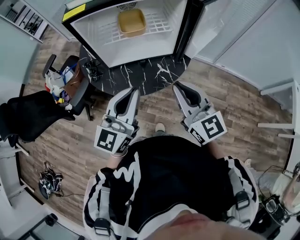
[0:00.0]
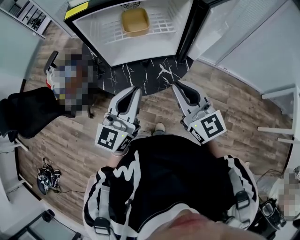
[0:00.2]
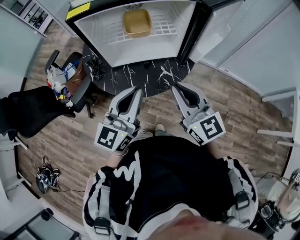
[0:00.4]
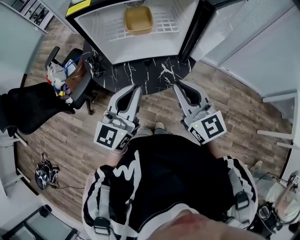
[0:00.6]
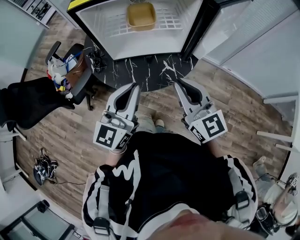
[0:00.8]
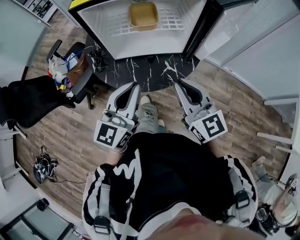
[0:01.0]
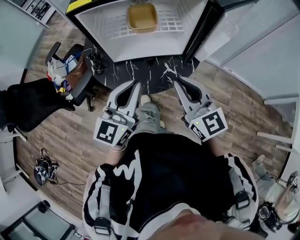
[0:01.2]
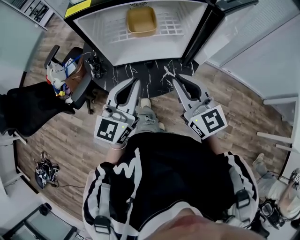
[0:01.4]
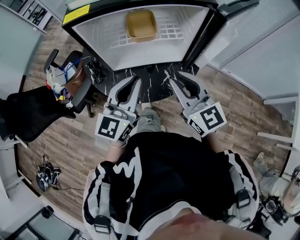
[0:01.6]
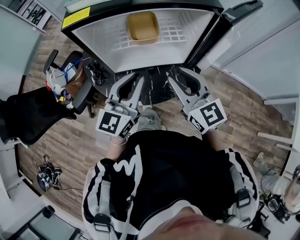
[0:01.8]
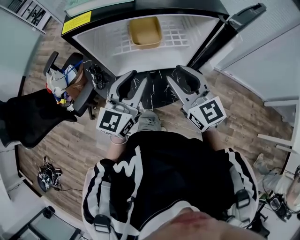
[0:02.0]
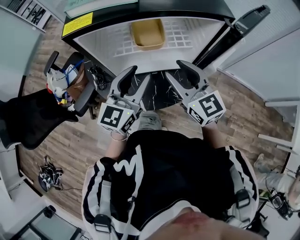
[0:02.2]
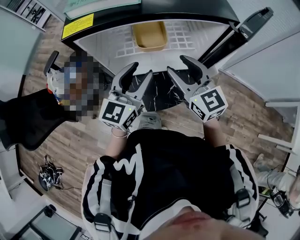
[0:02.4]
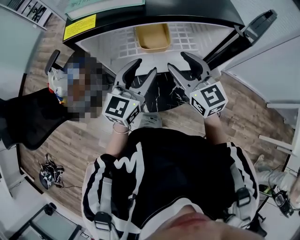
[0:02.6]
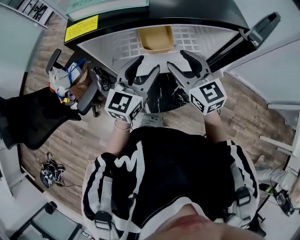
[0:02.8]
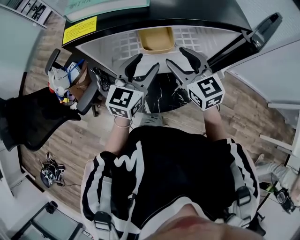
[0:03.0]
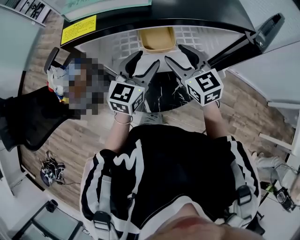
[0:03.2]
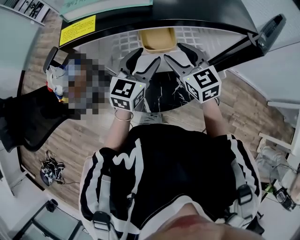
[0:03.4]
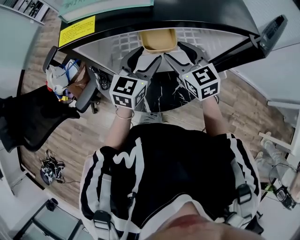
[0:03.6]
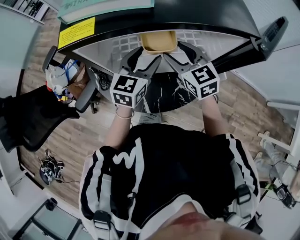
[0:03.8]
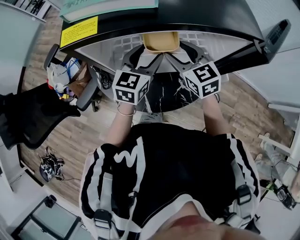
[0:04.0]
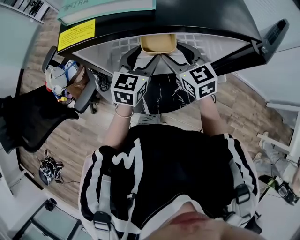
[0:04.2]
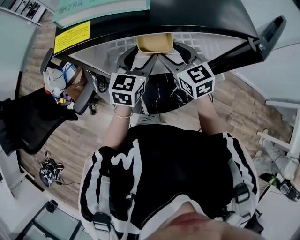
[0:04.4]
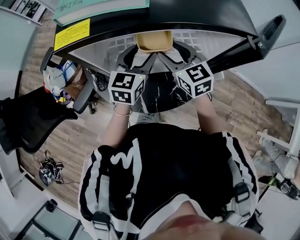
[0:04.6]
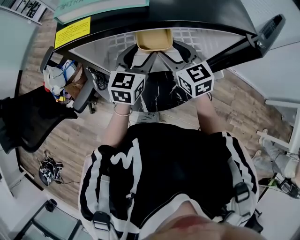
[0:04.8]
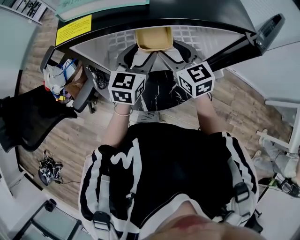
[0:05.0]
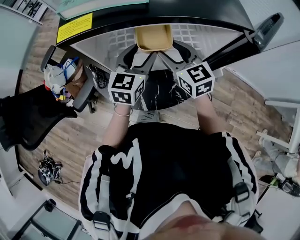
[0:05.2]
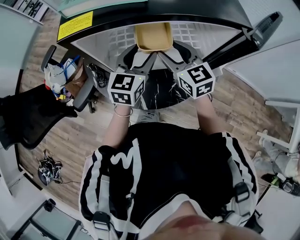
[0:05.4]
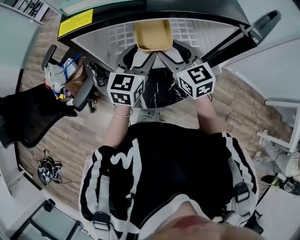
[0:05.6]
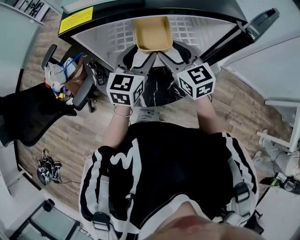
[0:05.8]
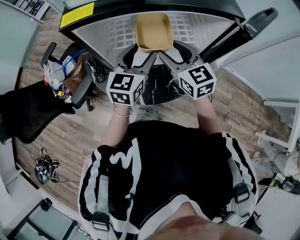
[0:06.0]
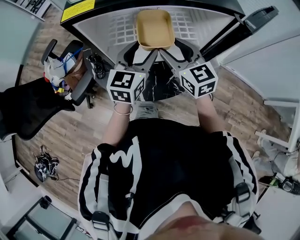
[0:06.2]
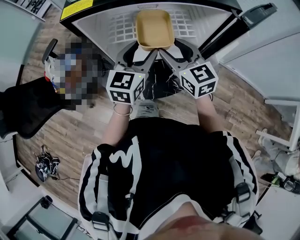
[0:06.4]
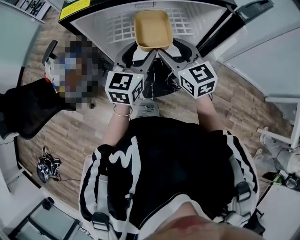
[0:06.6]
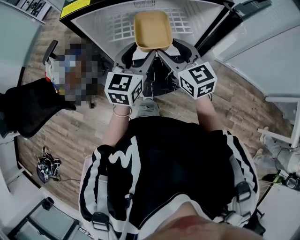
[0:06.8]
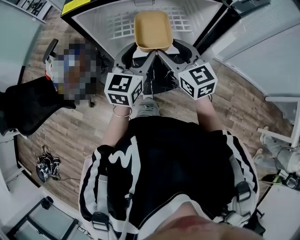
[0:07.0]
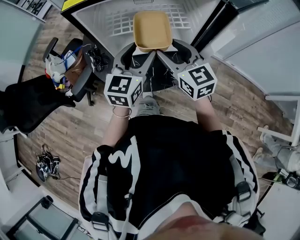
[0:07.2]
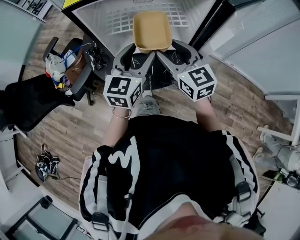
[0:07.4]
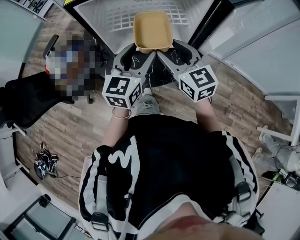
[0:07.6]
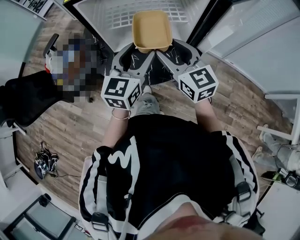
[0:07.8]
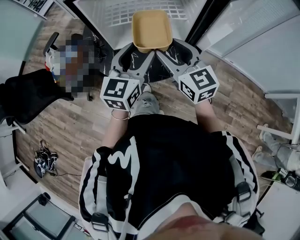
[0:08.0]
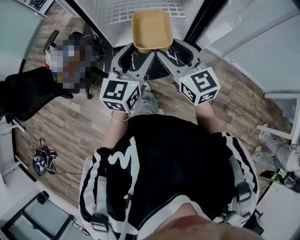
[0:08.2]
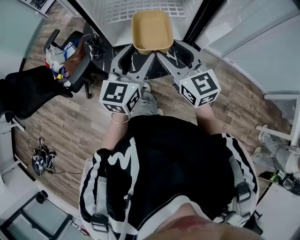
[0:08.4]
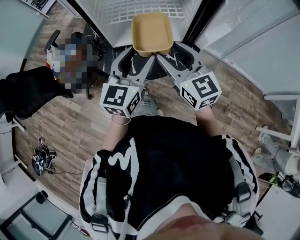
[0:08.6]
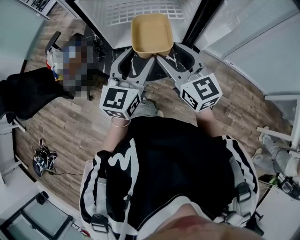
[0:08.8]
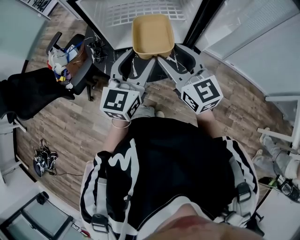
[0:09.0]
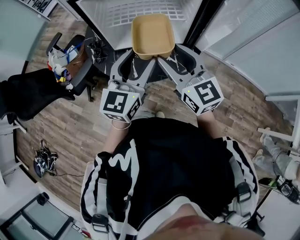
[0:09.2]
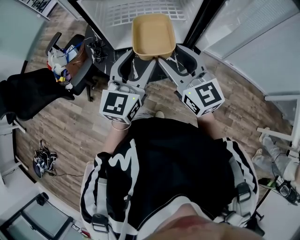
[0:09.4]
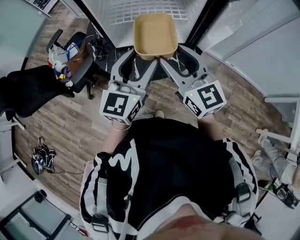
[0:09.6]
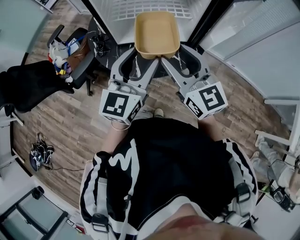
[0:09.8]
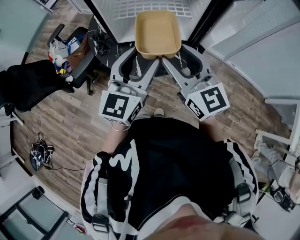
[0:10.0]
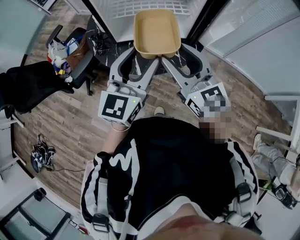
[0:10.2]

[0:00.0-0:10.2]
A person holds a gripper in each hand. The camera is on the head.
0:00.0 to 0:01.4: The two grippers go approximately 5 cm forward.
0:01.4 to 0:03.0: The grippers both shift forward by some 20 cm. The right gripper opens its fingers; the left gripper opens.
0:03.0 to 0:04.4: The right gripper ends up roughly 5 cm from where it was; the left gripper travels forward by some 5 cm.
0:04.4 to 0:05.8: The right gripper changes place by approximately 5 cm; the left gripper shifts by approximately 5 cm.
0:05.8 to 0:07.2: Both grippers travel together backward, approximately 10 cm.
0:07.2 to 0:08.8: The two grippers go some 10 cm backward.
0:08.8 to 0:10.2: The right gripper changes place by about 5 cm, while the left gripper ends up roughly 5 cm from where it was.

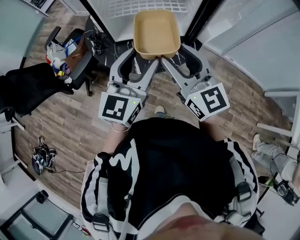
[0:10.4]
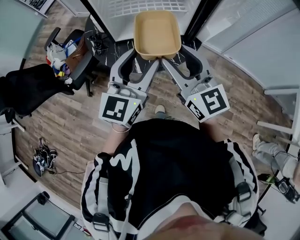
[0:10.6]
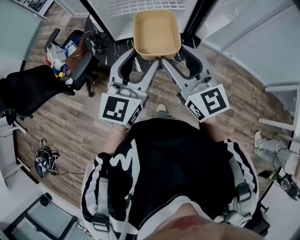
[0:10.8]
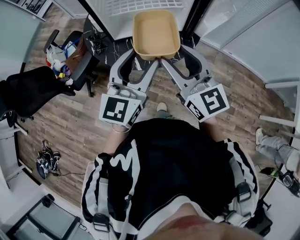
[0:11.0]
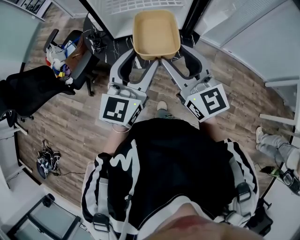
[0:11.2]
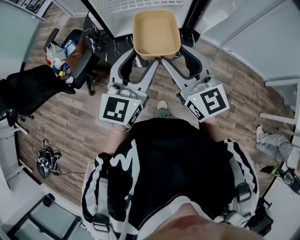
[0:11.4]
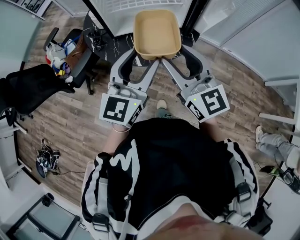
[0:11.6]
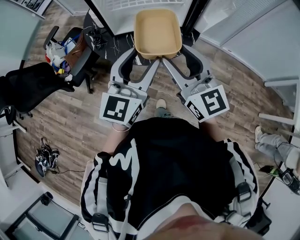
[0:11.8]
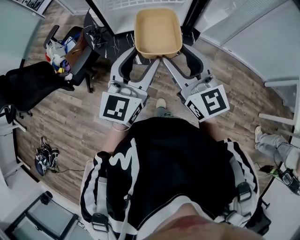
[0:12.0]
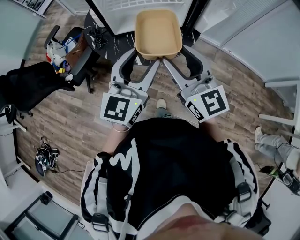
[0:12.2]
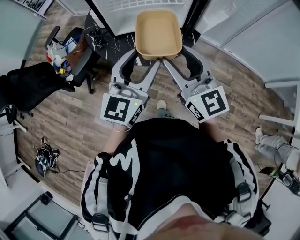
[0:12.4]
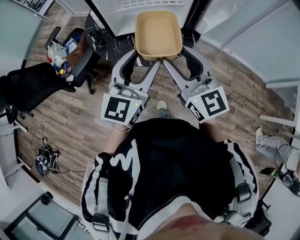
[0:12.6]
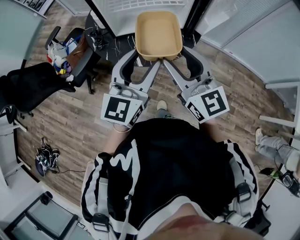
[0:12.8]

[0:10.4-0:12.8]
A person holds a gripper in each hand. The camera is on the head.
0:10.4 to 0:11.6: The right gripper shifts approximately 5 cm backward.
0:11.6 to 0:12.8: The two grippers keep their place.

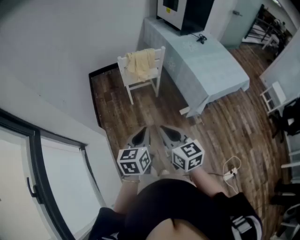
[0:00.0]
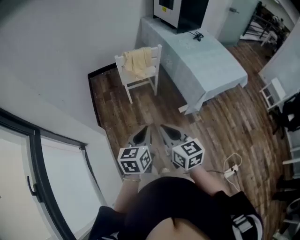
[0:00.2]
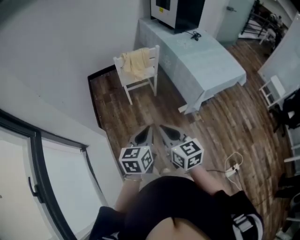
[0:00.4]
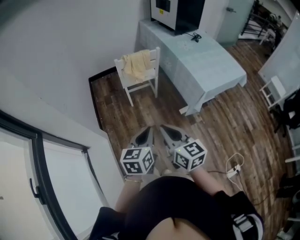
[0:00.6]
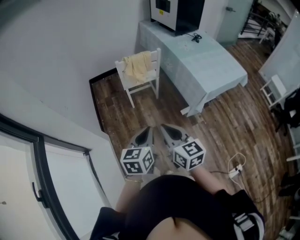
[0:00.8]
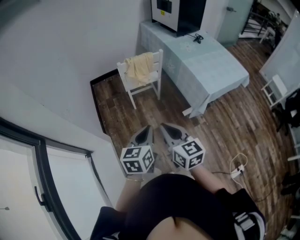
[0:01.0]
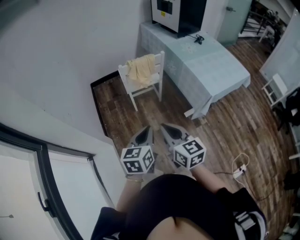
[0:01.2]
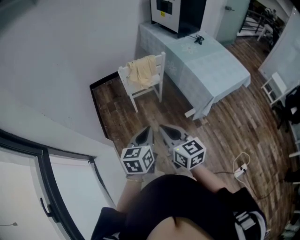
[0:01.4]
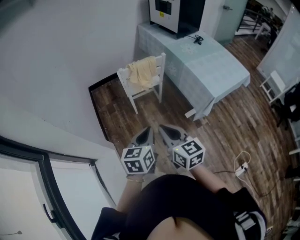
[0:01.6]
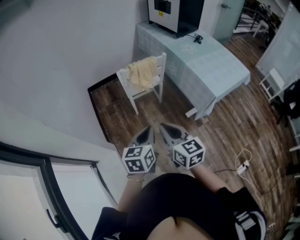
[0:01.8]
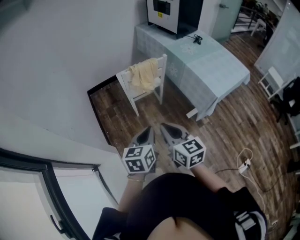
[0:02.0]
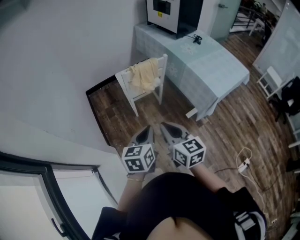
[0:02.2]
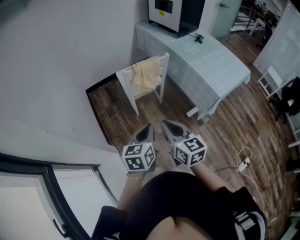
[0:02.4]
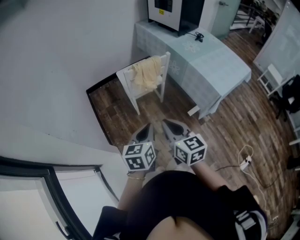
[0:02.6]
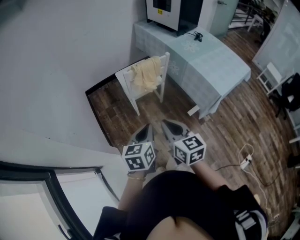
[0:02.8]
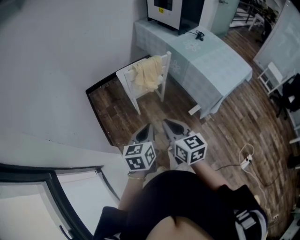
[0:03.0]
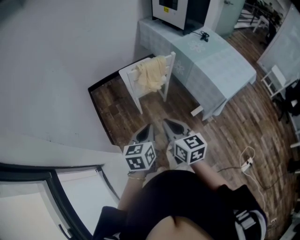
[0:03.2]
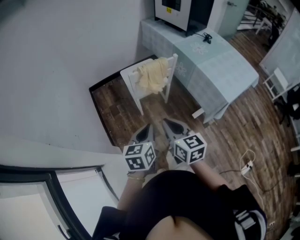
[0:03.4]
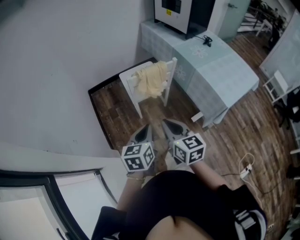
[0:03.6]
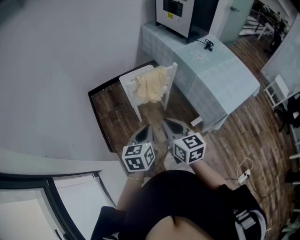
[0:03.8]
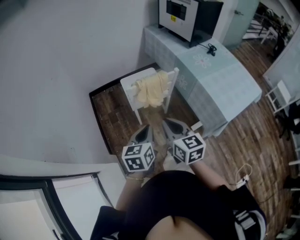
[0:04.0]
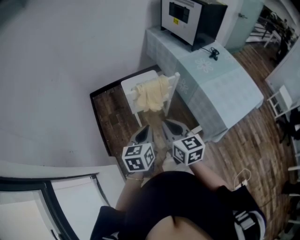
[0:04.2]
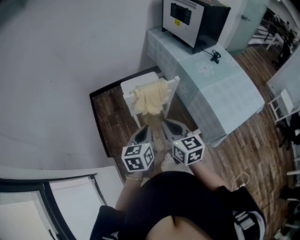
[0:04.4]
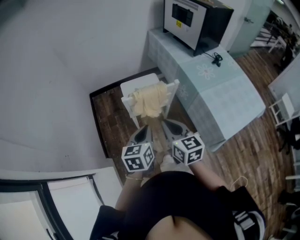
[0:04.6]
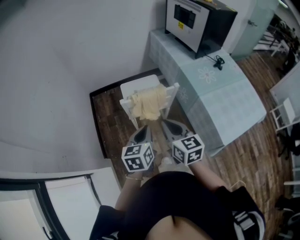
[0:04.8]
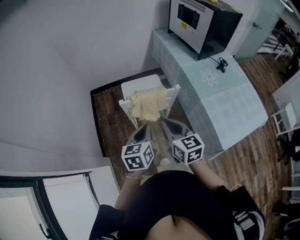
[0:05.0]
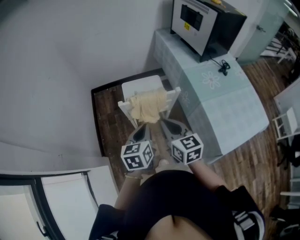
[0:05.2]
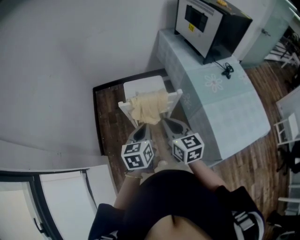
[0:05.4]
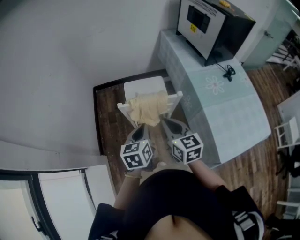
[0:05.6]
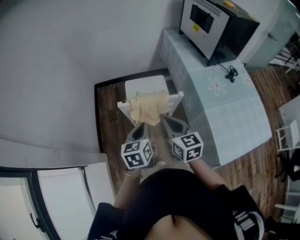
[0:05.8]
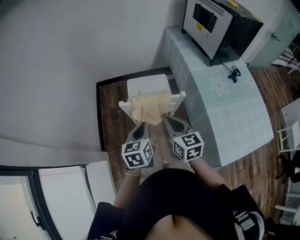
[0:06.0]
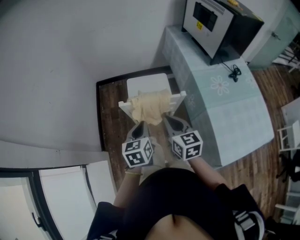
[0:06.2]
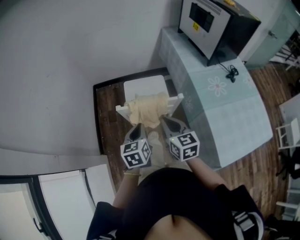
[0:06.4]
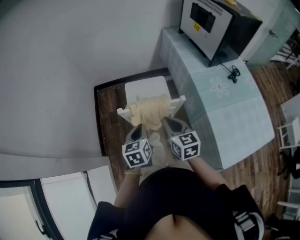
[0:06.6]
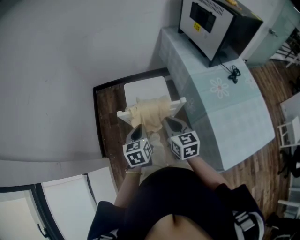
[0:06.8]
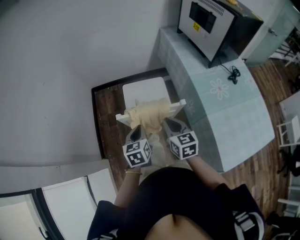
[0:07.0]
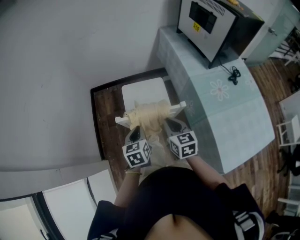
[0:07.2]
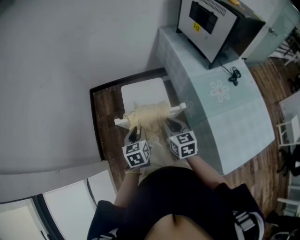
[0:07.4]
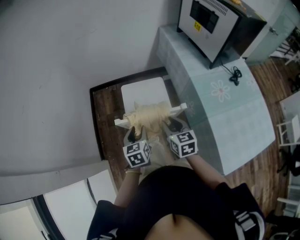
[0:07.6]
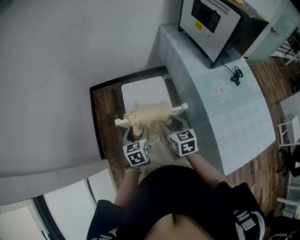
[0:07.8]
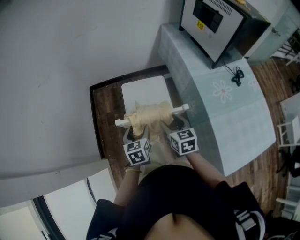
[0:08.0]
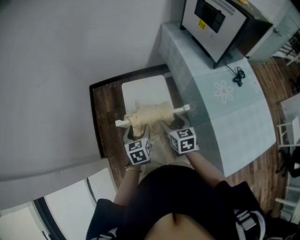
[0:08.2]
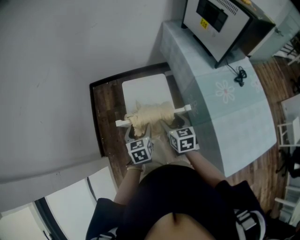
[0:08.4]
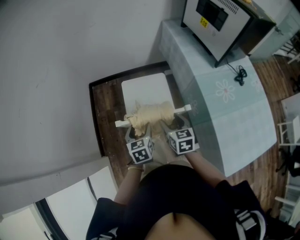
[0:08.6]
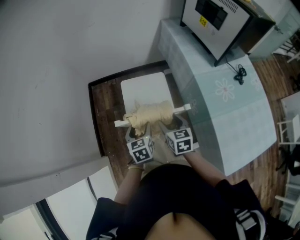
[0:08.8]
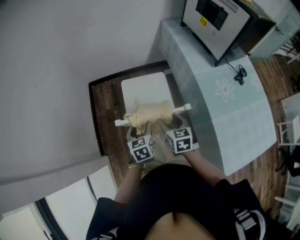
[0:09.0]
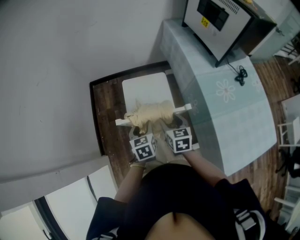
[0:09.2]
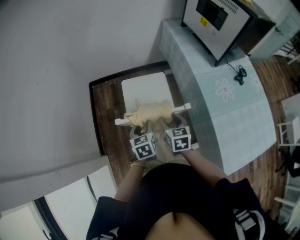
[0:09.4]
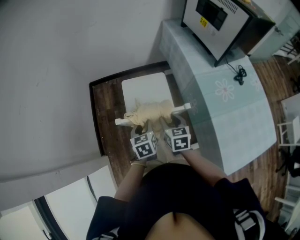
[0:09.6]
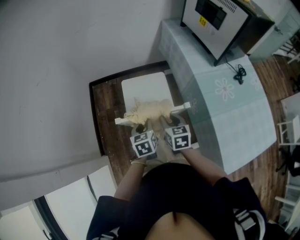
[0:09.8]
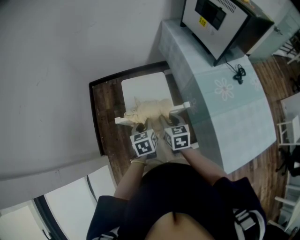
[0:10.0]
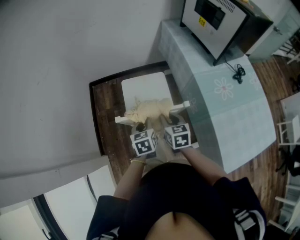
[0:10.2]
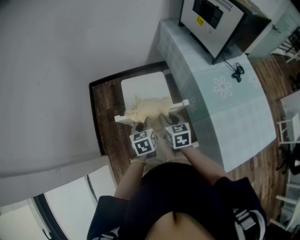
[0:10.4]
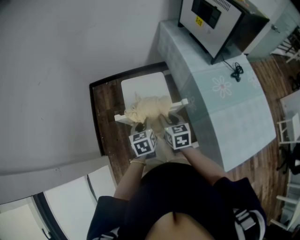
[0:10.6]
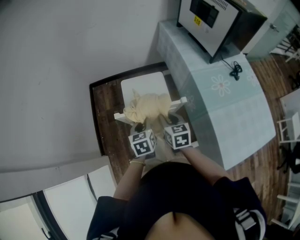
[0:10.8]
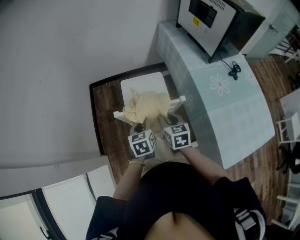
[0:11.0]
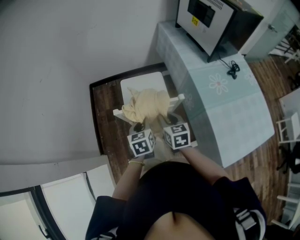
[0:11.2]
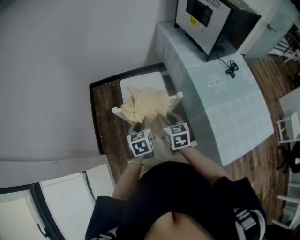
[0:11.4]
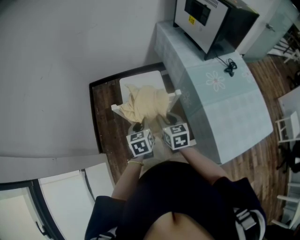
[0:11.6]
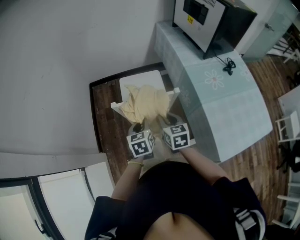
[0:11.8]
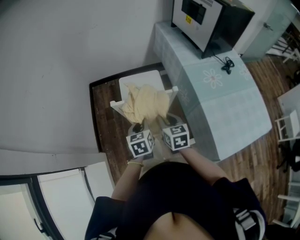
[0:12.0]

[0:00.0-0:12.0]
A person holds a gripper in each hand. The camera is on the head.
0:00.0 to 0:01.6: The right gripper goes about 10 cm forward and to the left. The left gripper is displaced forward by roughly 5 cm.
0:01.6 to 0:03.0: The grippers both shift forward and to the left by roughly 10 cm.
0:03.0 to 0:04.4: The two grippers go some 20 cm forward.
0:04.4 to 0:06.0: The grippers both shift forward and to the right by roughly 15 cm.
0:06.0 to 0:07.6: Both grippers travel together forward and downward, approximately 15 cm. The right gripper opens its fingers, while the left gripper opens its fingers.
0:07.6 to 0:09.0: The left gripper opens its fingers, while the right gripper ends up roughly 5 cm from where it was, and opens its fingers.
0:09.0 to 0:10.4: The left gripper closes, while the right gripper closes its fingers.
0:10.4 to 0:12.0: Both grippers travel together backward, approximately 10 cm.
